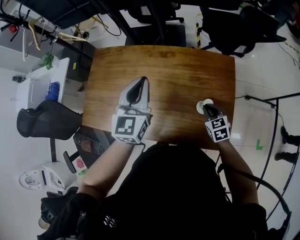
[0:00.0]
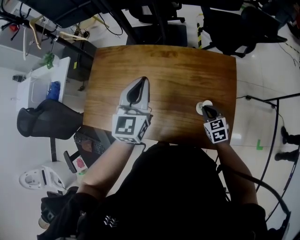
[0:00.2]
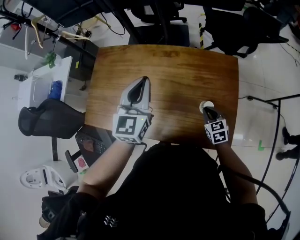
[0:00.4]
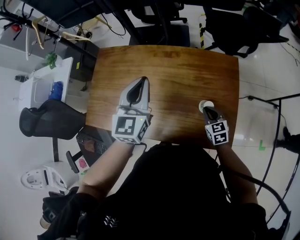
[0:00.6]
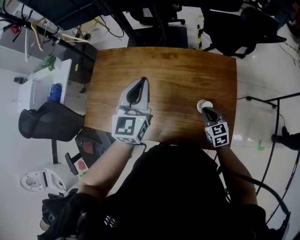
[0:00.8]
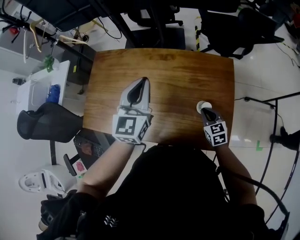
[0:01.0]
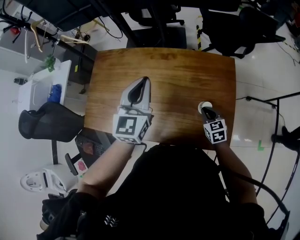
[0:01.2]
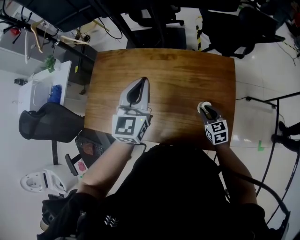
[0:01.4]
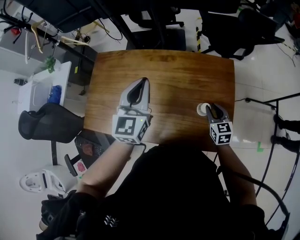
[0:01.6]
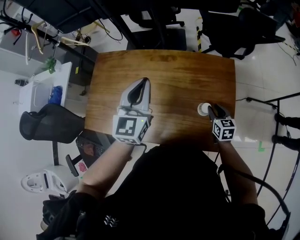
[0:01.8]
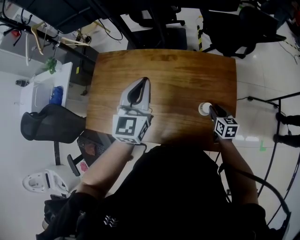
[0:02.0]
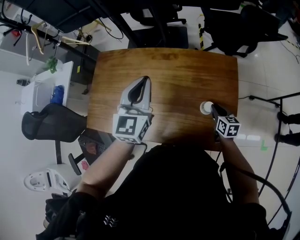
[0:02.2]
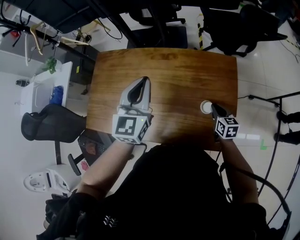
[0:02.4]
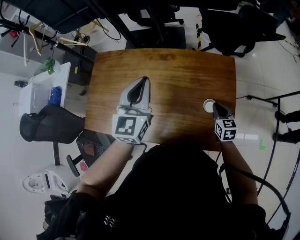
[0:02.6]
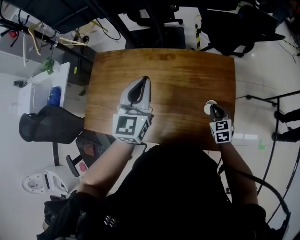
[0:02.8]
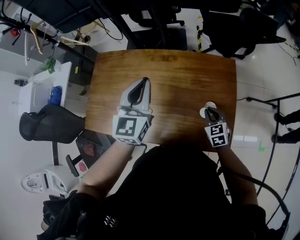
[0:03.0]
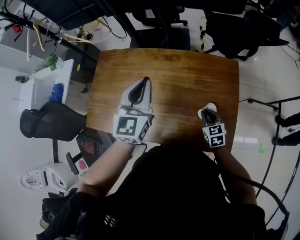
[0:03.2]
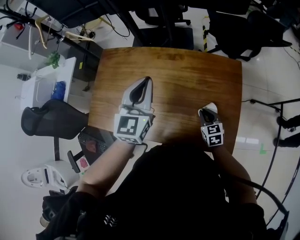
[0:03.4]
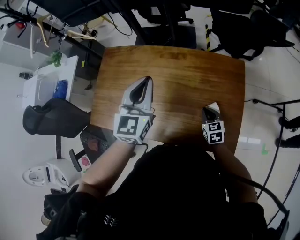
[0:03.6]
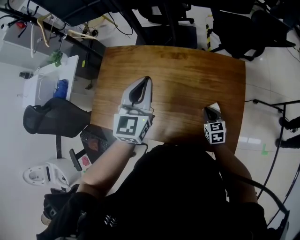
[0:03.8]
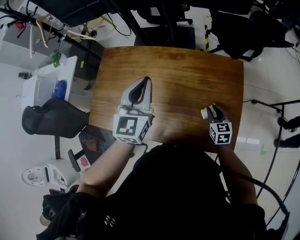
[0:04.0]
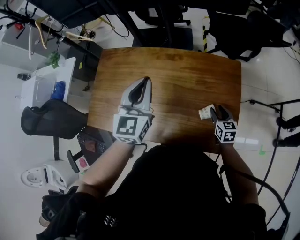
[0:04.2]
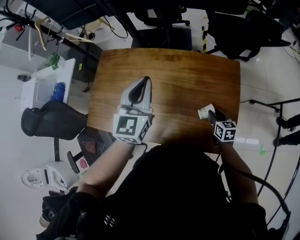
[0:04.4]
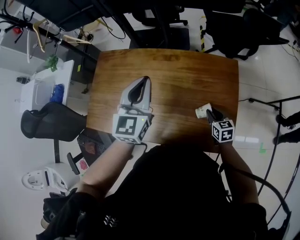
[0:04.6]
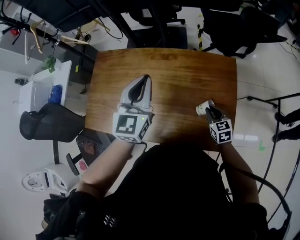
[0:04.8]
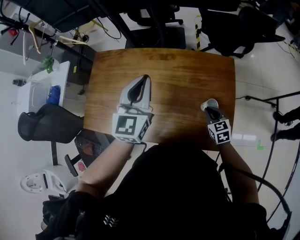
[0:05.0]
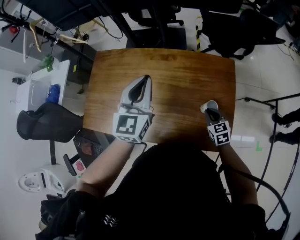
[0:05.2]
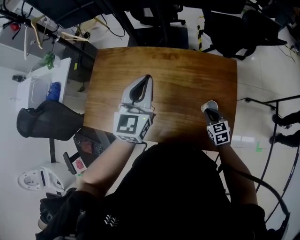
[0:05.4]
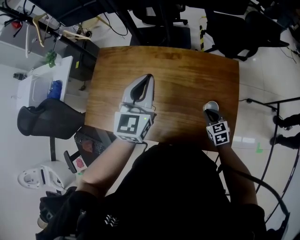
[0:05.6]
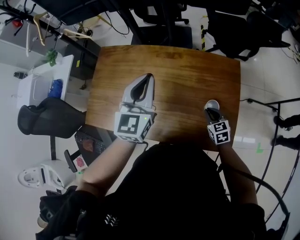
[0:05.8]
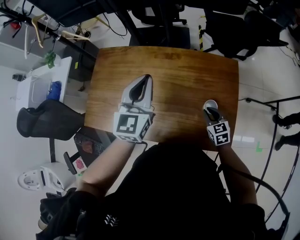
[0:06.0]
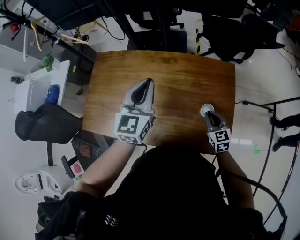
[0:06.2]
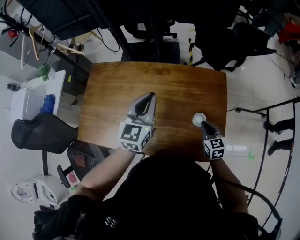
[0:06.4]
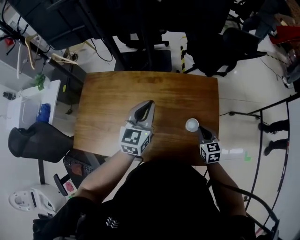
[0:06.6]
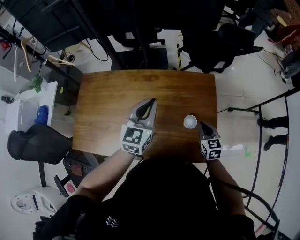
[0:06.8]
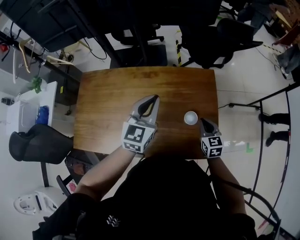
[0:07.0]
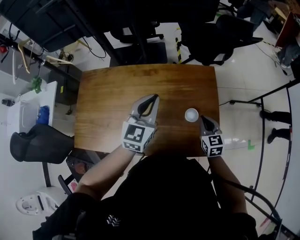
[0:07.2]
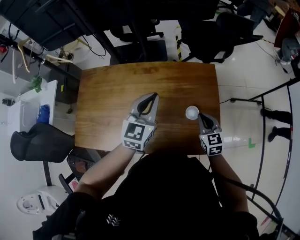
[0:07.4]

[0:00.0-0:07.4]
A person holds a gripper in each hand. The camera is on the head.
0:00.0 to 0:01.4: The grippers stay close to where they were, moving slightly.
0:03.0 to 0:04.4: The right gripper shifts by about 5 cm, changes its angle by roughly 30 degrees, and opens its fingers.
0:04.4 to 0:06.0: The right gripper moves approximately 5 cm, turns by roughly 20 degrees, and closes.
0:06.0 to 0:07.4: The right gripper goes some 10 cm upward, while the left gripper shifts approximately 10 cm to the right.

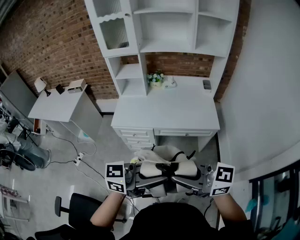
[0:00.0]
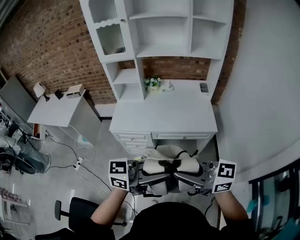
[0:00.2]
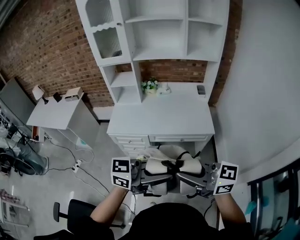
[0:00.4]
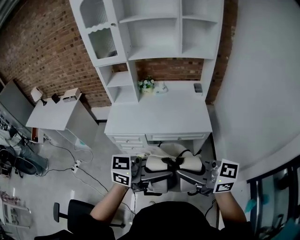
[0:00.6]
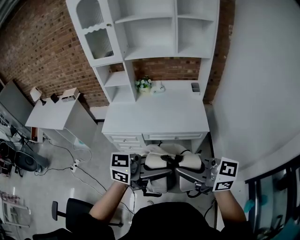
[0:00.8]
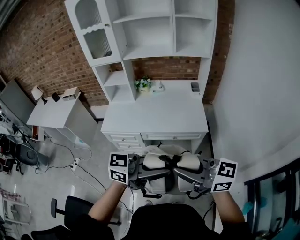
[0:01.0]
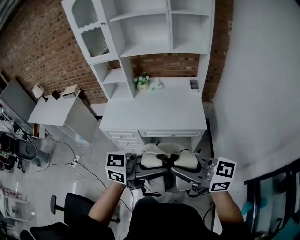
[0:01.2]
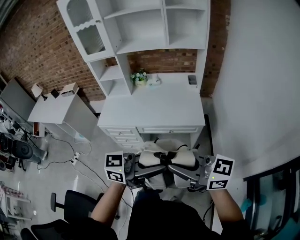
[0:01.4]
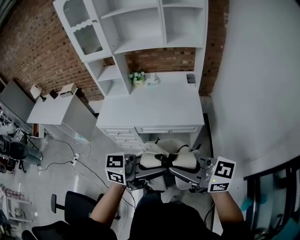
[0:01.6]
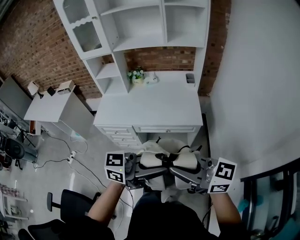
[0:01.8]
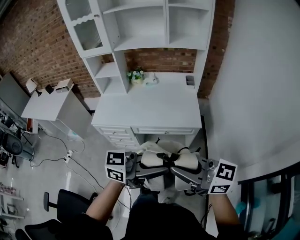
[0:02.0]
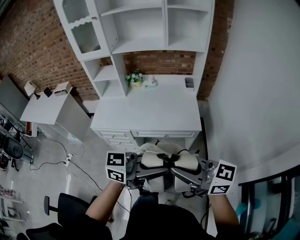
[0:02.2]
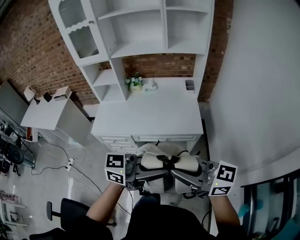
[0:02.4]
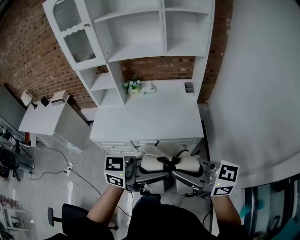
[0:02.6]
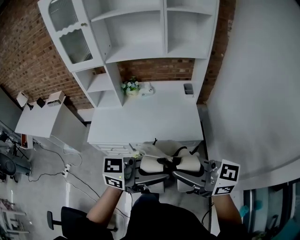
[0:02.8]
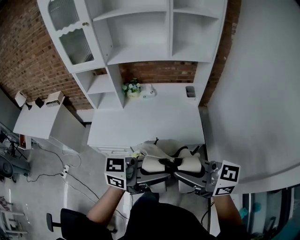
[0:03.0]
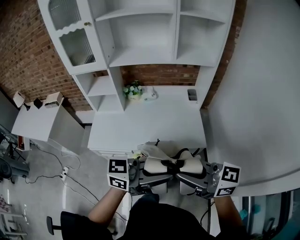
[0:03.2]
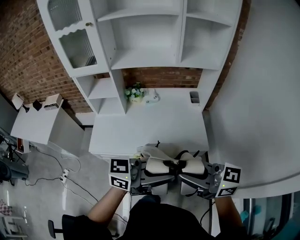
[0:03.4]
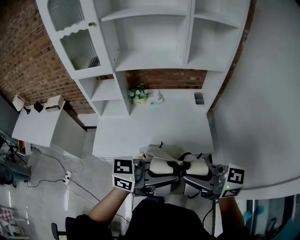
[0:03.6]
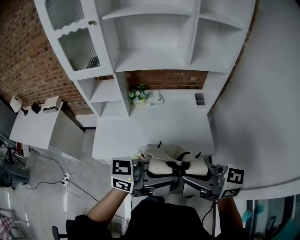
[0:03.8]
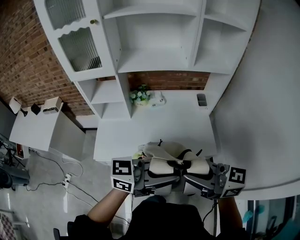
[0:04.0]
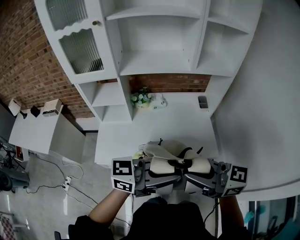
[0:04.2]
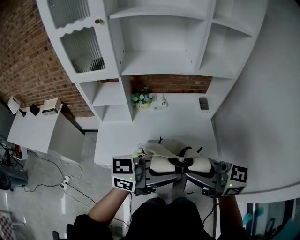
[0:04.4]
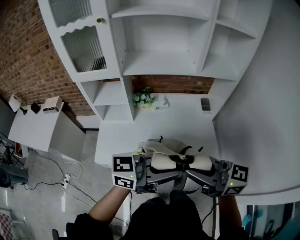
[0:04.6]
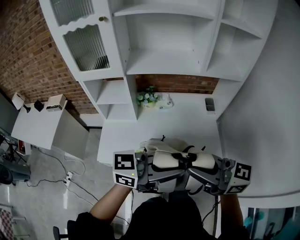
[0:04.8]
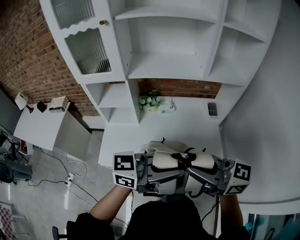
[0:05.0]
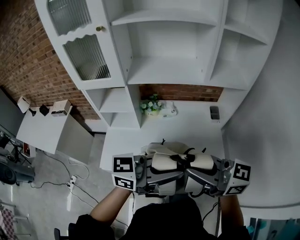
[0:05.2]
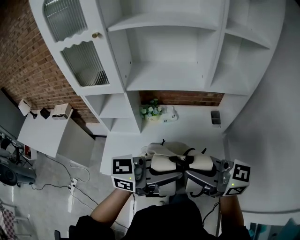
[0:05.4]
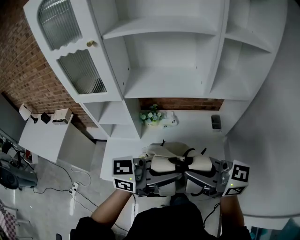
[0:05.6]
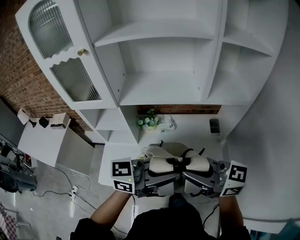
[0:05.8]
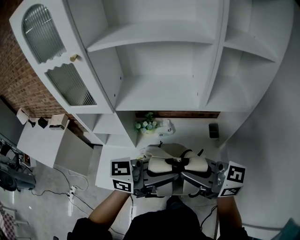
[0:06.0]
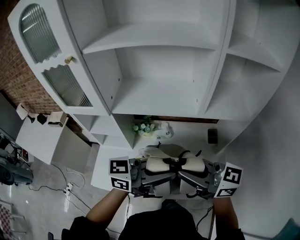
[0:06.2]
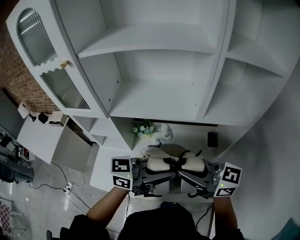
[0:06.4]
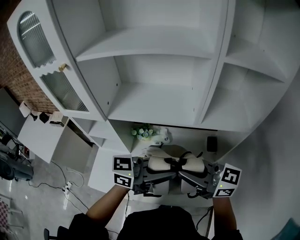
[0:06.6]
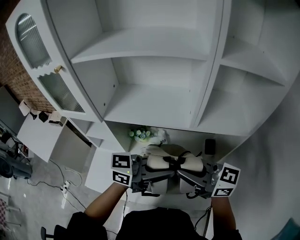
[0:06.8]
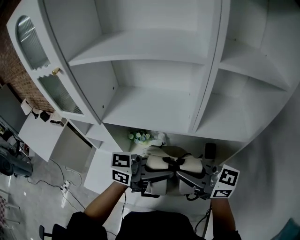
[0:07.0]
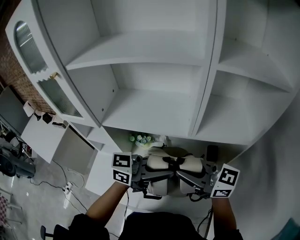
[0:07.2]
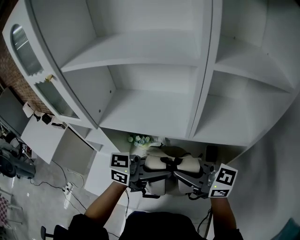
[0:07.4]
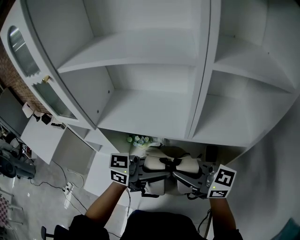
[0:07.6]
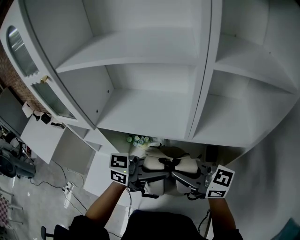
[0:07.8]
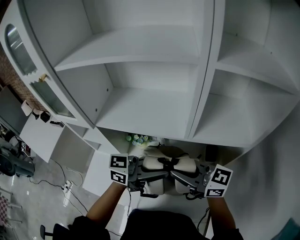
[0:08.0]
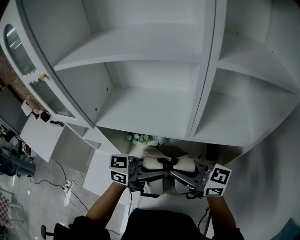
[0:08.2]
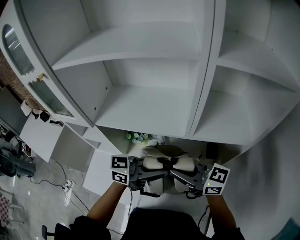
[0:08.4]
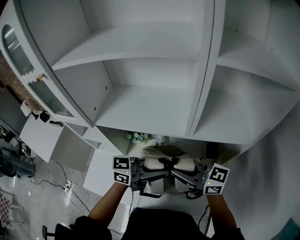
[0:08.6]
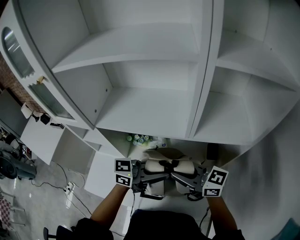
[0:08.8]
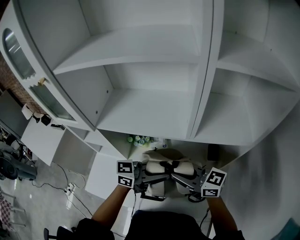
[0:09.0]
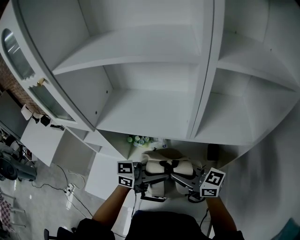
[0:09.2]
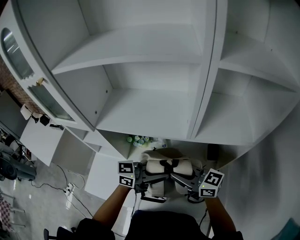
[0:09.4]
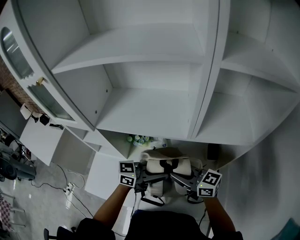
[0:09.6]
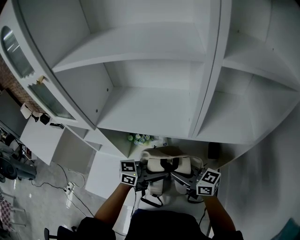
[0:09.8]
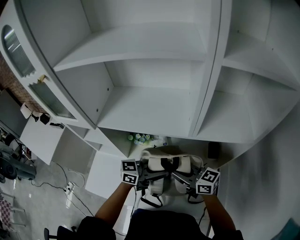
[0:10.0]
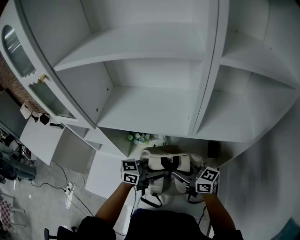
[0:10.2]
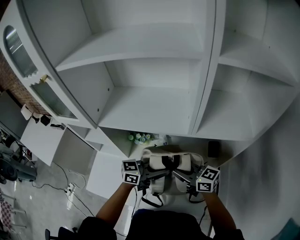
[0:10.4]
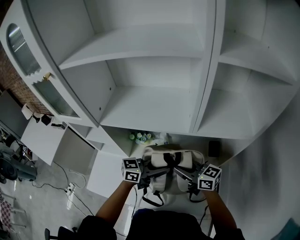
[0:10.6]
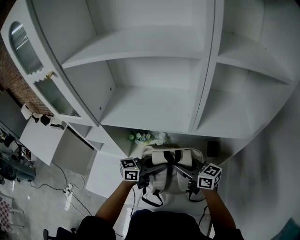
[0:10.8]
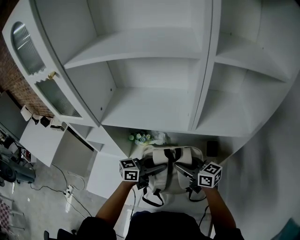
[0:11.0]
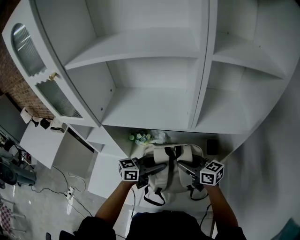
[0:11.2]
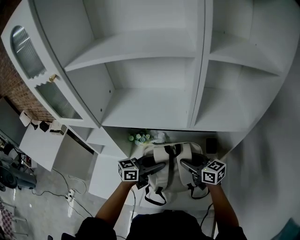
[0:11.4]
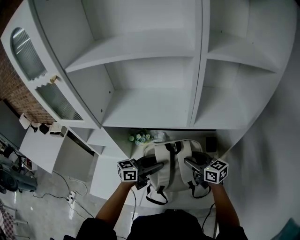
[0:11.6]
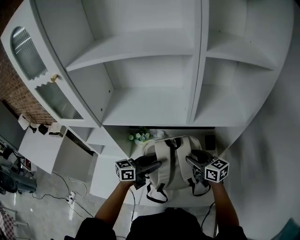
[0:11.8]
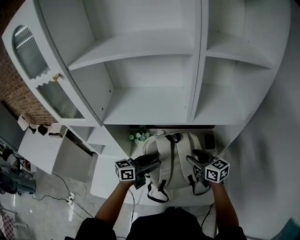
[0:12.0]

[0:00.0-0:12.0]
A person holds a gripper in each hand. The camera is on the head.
0:00.0 to 0:01.6: The left gripper changes place by roughly 20 cm, while the right gripper shifts by about 20 cm.
0:01.6 to 0:03.0: The left gripper moves about 15 cm. The right gripper ends up roughly 20 cm from where it was.
0:03.0 to 0:04.4: The right gripper changes place by about 20 cm. Meanwhile the left gripper shifts by some 20 cm.
0:04.4 to 0:06.0: The right gripper shifts by roughly 20 cm. Meanwhile the left gripper moves some 20 cm.
0:06.0 to 0:07.6: The left gripper shifts by roughly 15 cm. The right gripper ends up roughly 15 cm from where it was.
0:07.6 to 0:09.0: The grippers both shift downward by some 10 cm.
0:09.0 to 0:10.4: The two grippers go about 5 cm downward.
0:10.4 to 0:12.0: The right gripper shifts by roughly 10 cm, swivels about 30 degrees, and opens, while the left gripper shifts by roughly 5 cm, and opens its fingers.

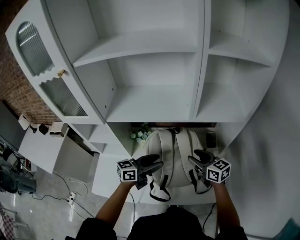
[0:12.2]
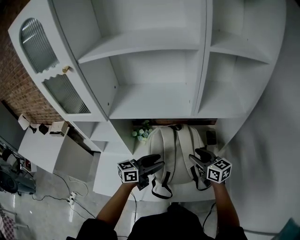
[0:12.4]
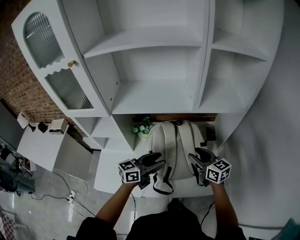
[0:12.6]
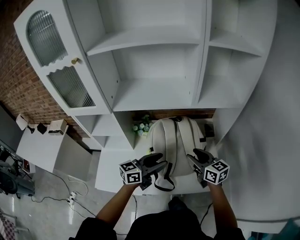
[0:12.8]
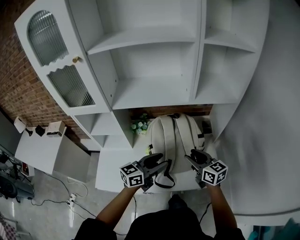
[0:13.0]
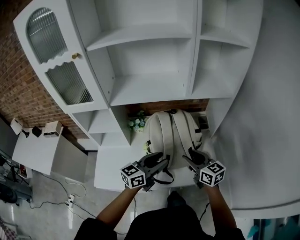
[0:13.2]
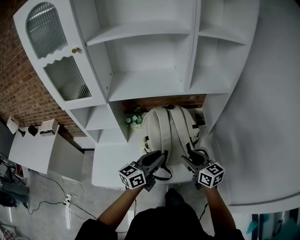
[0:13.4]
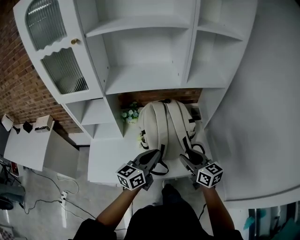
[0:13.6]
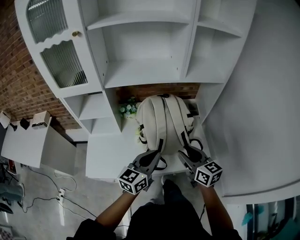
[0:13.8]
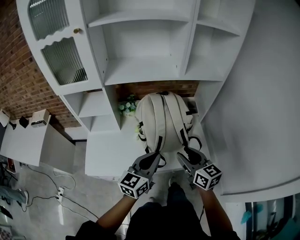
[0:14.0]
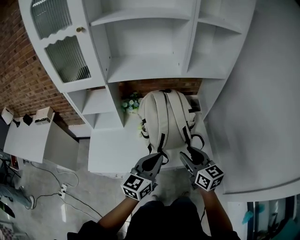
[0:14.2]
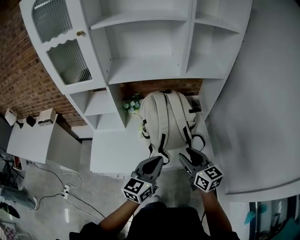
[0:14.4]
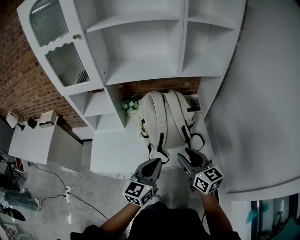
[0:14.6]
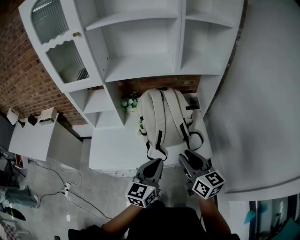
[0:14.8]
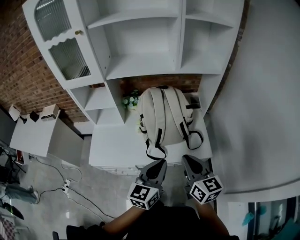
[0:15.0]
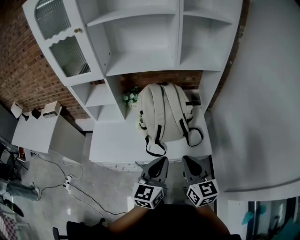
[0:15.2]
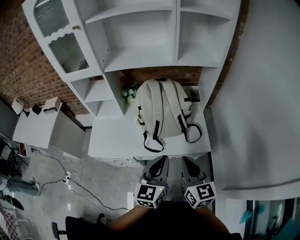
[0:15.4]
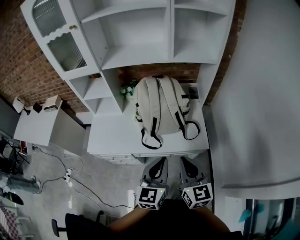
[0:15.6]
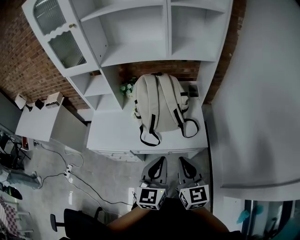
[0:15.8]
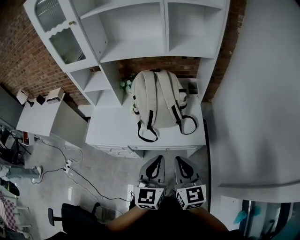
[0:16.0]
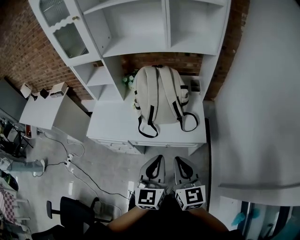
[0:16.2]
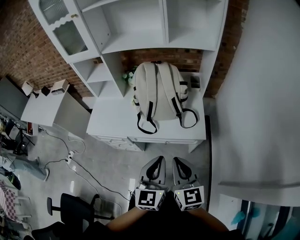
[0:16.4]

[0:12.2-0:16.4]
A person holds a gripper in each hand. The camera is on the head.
0:12.2 to 0:13.6: The two grippers go roughly 20 cm backward. The left gripper closes its fingers.
0:13.6 to 0:15.0: The right gripper heads backward, covering approximately 15 cm, and closes its fingers; the left gripper moves backward and to the right, approximately 15 cm.
0:15.0 to 0:16.4: Both grippers travel together backward and to the right, approximately 15 cm. The left gripper swivels about 20 degrees.
